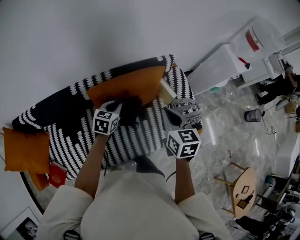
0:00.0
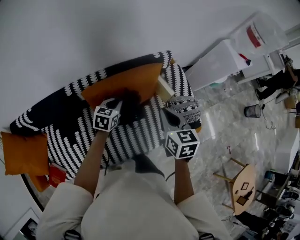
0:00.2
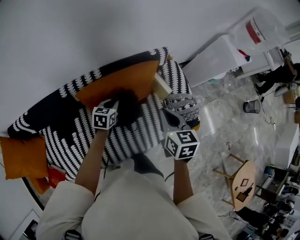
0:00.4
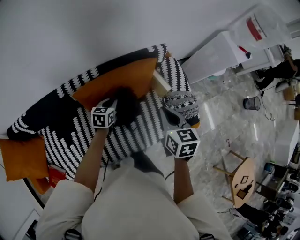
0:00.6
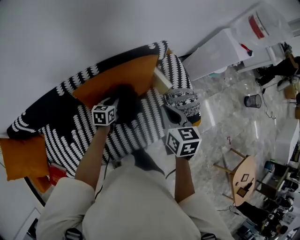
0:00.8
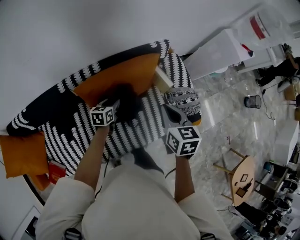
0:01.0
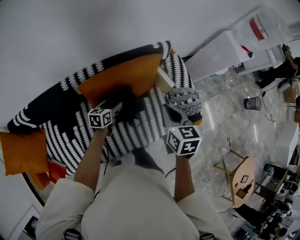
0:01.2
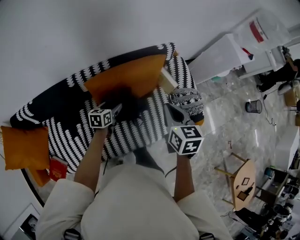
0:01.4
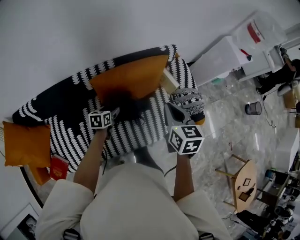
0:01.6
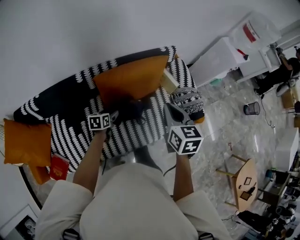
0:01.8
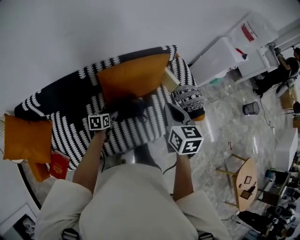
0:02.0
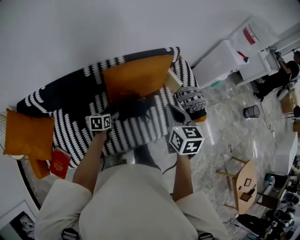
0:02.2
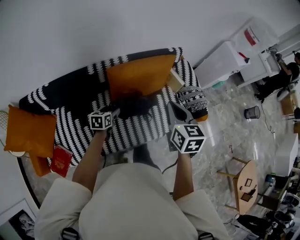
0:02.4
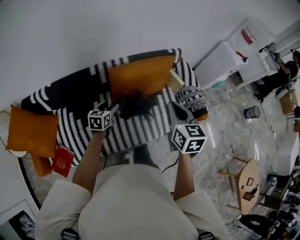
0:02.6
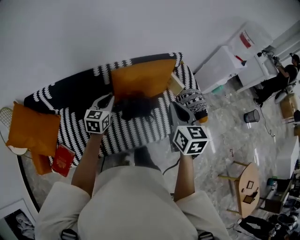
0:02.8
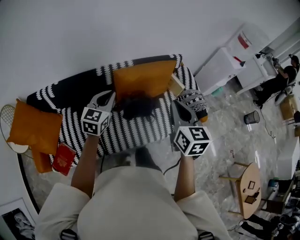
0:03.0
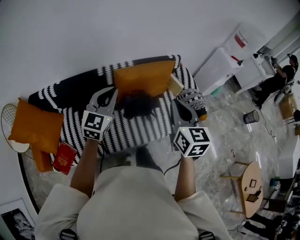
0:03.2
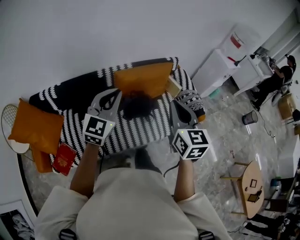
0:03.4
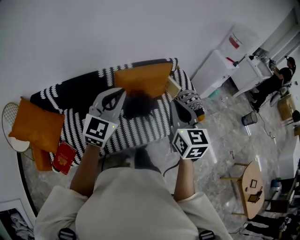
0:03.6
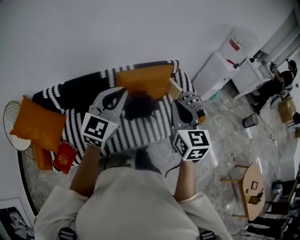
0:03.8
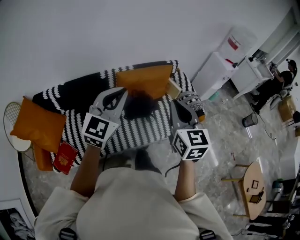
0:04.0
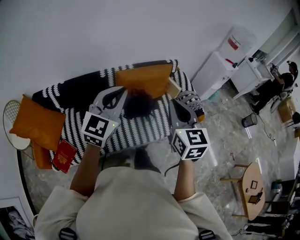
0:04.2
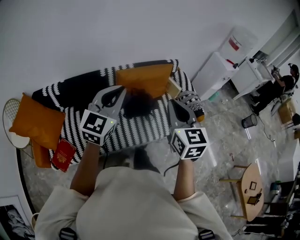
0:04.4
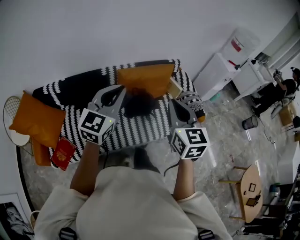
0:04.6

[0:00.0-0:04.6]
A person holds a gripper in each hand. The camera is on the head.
0:00.0 to 0:01.6: The left gripper goes roughly 15 cm downward, backward and to the left, changes its angle by about 20 degrees, and opens up.
0:01.6 to 0:03.0: The left gripper heads upward and backward, covering about 35 cm, turns by some 40 degrees, and closes its fingers. Meanwhile the right gripper moves backward and upward, about 30 cm.
0:03.0 to 0:04.6: The left gripper travels backward, upward and to the right by about 20 cm; the right gripper shifts about 15 cm backward and upward.

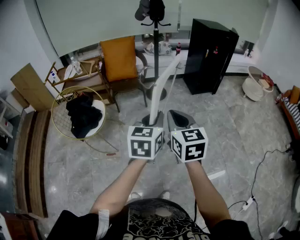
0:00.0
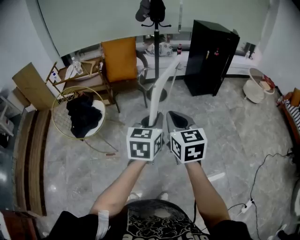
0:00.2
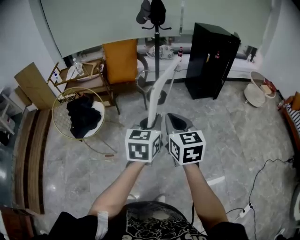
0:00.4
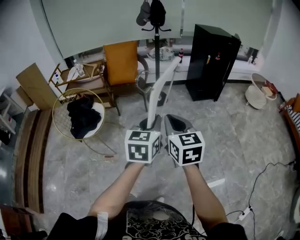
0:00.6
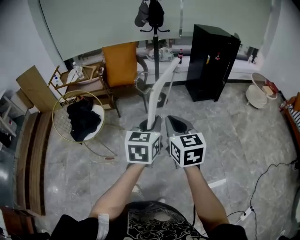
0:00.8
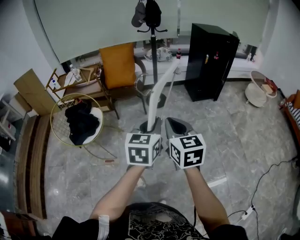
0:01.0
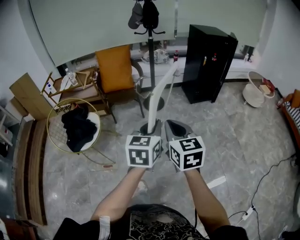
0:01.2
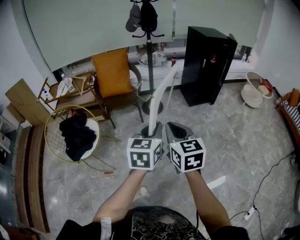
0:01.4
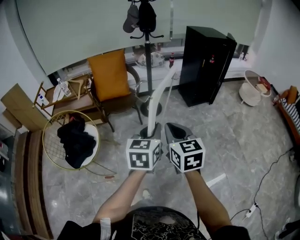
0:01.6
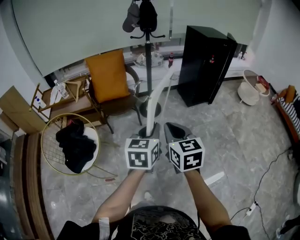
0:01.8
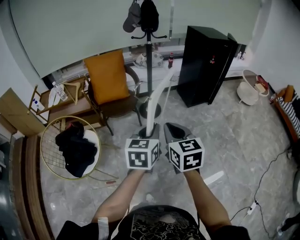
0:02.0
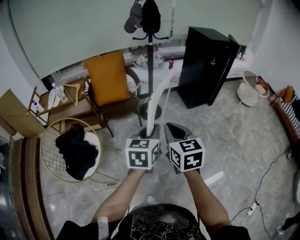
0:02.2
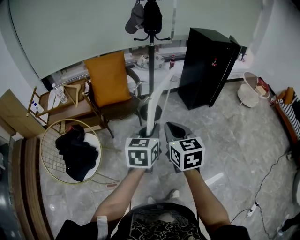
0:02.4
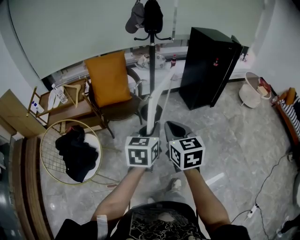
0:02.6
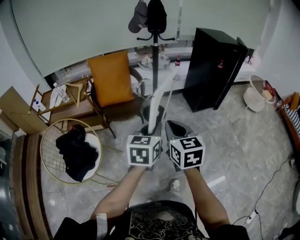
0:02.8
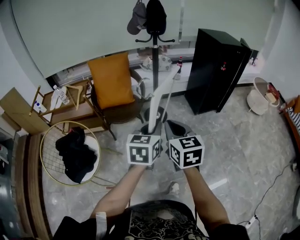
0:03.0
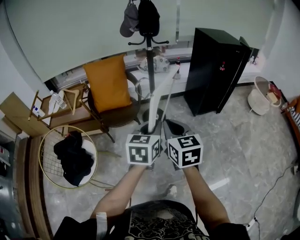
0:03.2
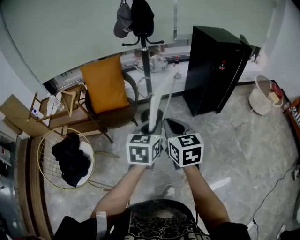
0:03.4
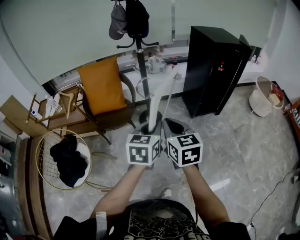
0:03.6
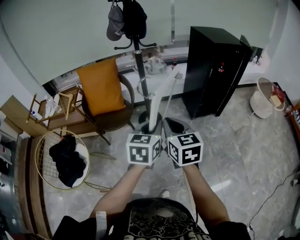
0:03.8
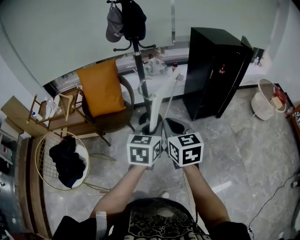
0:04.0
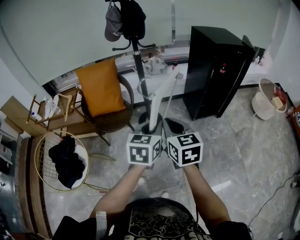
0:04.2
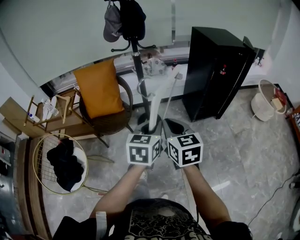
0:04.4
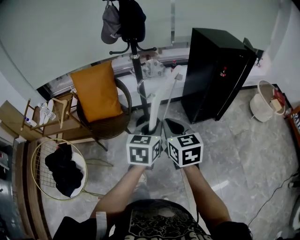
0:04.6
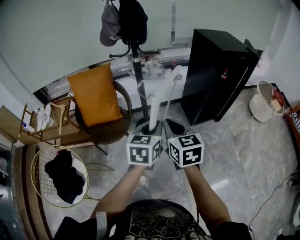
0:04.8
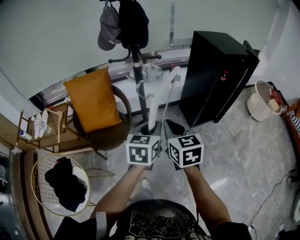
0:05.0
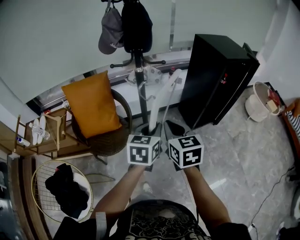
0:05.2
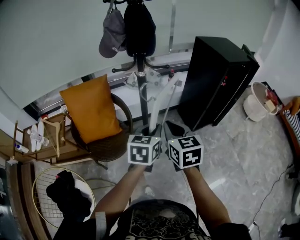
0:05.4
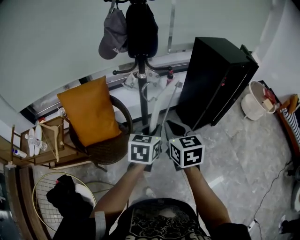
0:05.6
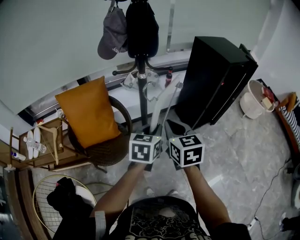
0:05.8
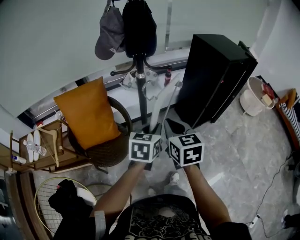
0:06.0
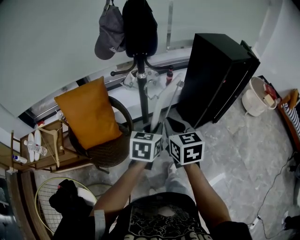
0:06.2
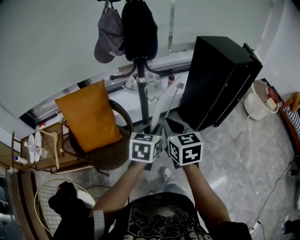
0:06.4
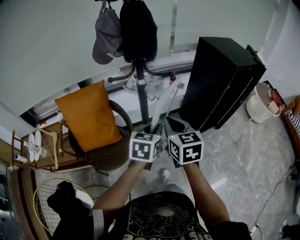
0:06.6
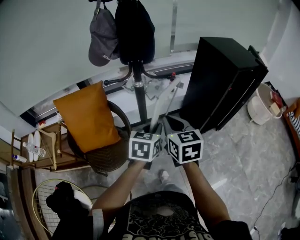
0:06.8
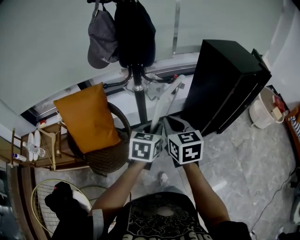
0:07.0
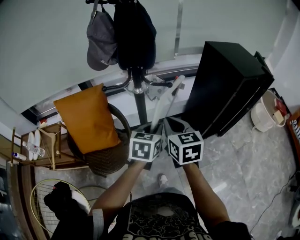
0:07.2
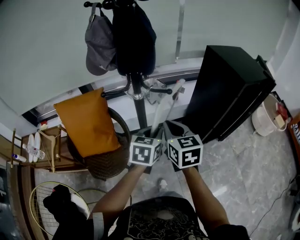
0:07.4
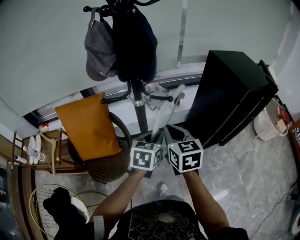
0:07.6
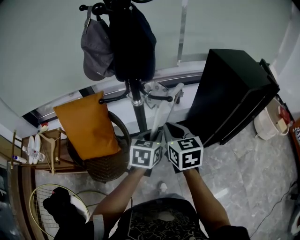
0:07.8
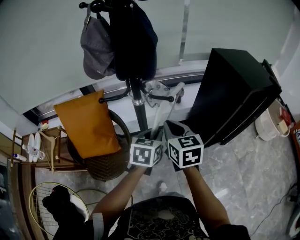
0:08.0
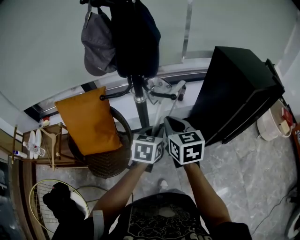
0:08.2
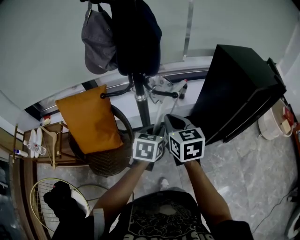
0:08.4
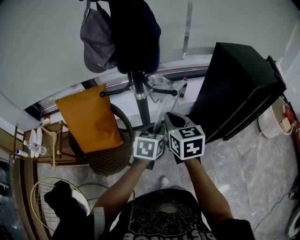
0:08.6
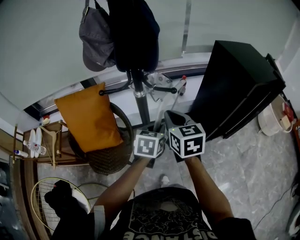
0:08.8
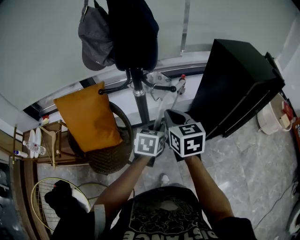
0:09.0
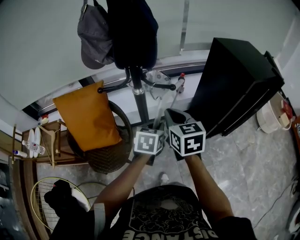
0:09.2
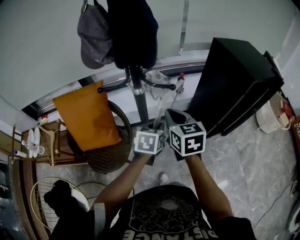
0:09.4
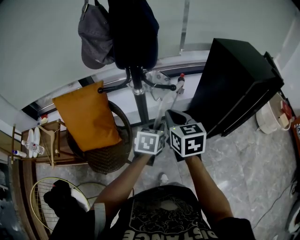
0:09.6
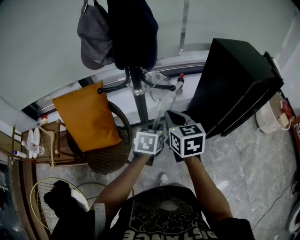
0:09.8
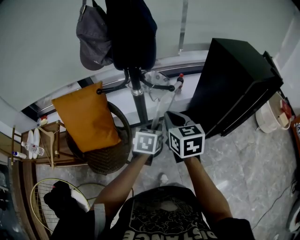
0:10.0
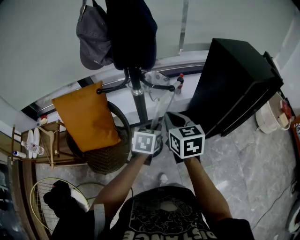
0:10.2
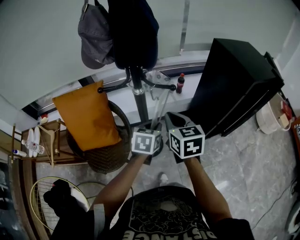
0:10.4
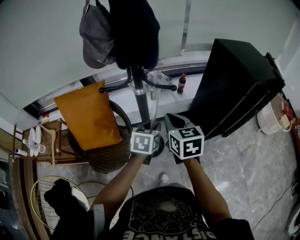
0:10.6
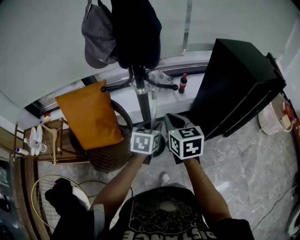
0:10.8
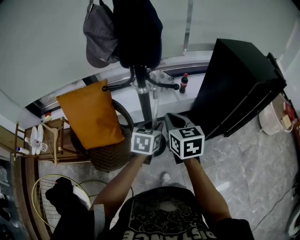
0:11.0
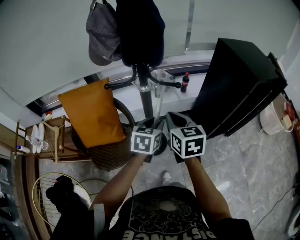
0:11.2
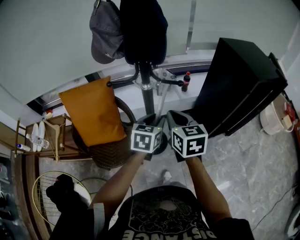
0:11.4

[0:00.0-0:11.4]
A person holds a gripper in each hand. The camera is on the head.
0:00.0 to 0:01.4: The grippers both shift forward by about 10 cm.
0:01.4 to 0:02.8: The two grippers go approximately 20 cm forward and to the left.
0:02.8 to 0:04.2: The grippers both shift to the right and forward by roughly 25 cm.
0:04.2 to 0:05.6: The grippers both shift forward and to the left by roughly 25 cm.
0:05.6 to 0:07.2: Both grippers travel together forward, about 15 cm.
0:07.2 to 0:08.6: The grippers both shift forward by roughly 5 cm.
0:08.6 to 0:10.0: The grippers move only a little.
0:10.0 to 0:11.4: The left gripper goes about 5 cm upward.

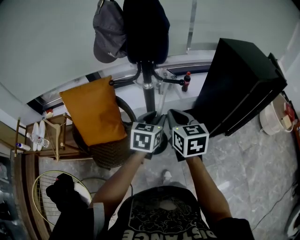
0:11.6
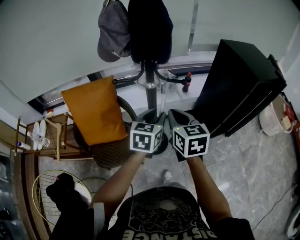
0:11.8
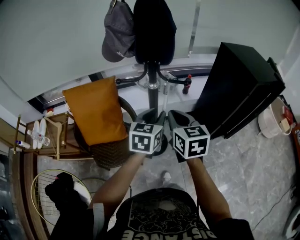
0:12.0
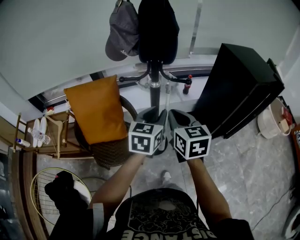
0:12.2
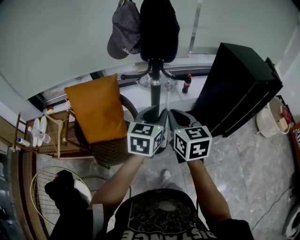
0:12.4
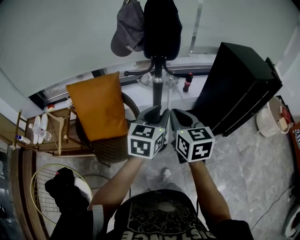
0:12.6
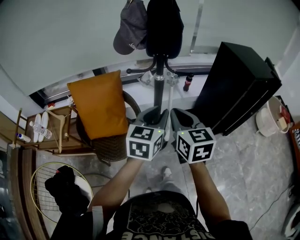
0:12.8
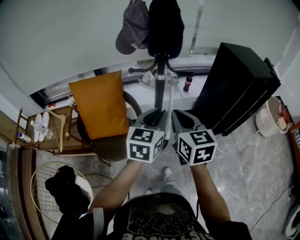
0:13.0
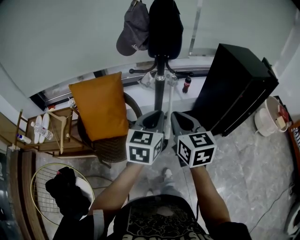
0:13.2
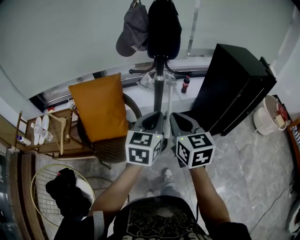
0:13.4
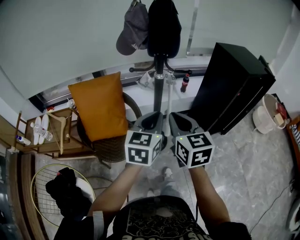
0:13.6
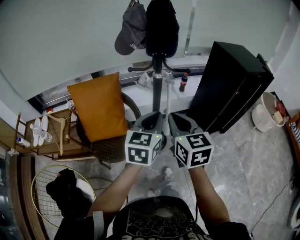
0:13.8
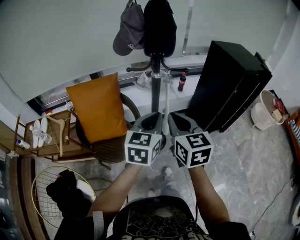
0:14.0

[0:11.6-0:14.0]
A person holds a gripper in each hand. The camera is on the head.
0:11.6 to 0:12.8: The left gripper is displaced upward and backward by some 15 cm. The right gripper moves backward and upward, some 10 cm.
0:12.8 to 0:14.0: Both grippers travel together backward, some 5 cm. The left gripper closes up.

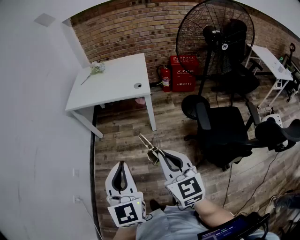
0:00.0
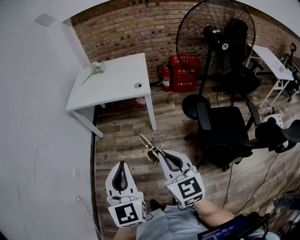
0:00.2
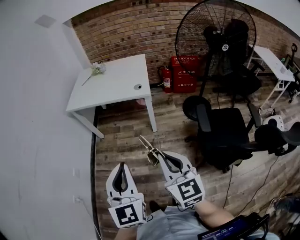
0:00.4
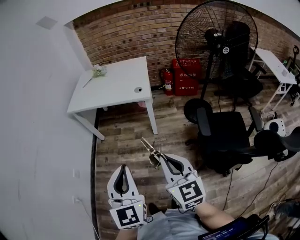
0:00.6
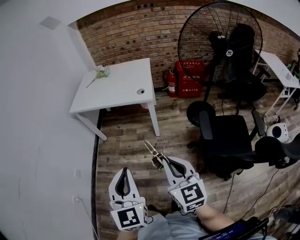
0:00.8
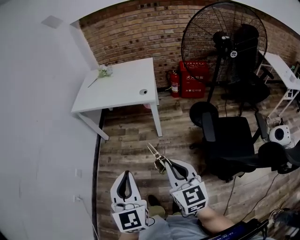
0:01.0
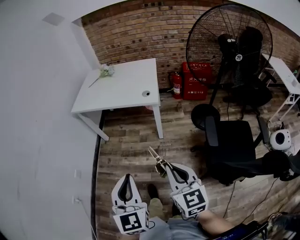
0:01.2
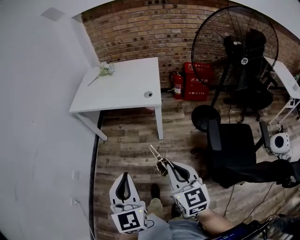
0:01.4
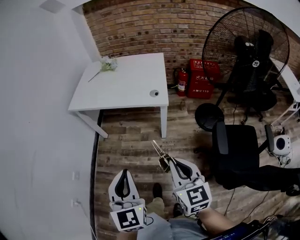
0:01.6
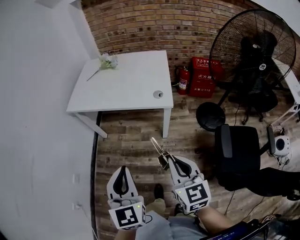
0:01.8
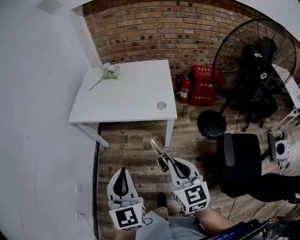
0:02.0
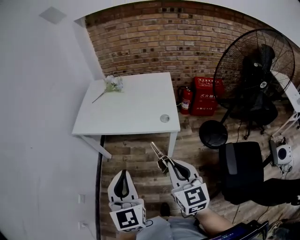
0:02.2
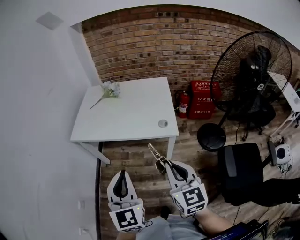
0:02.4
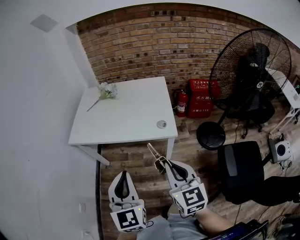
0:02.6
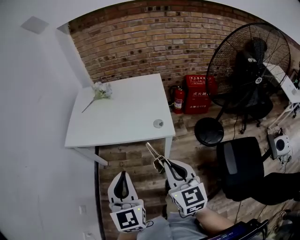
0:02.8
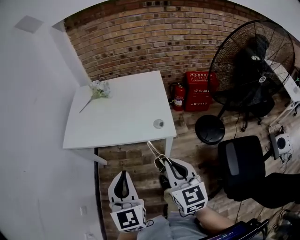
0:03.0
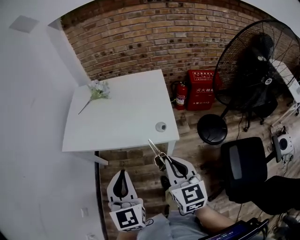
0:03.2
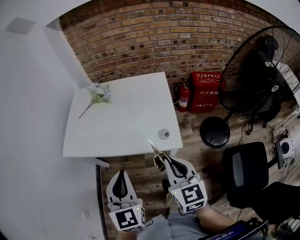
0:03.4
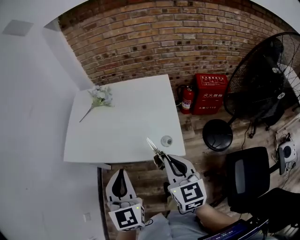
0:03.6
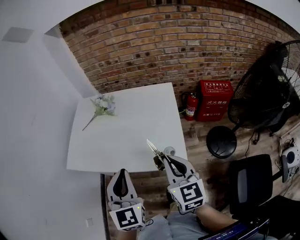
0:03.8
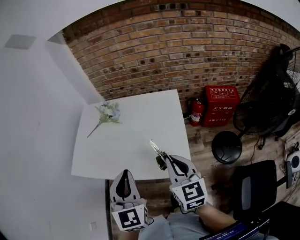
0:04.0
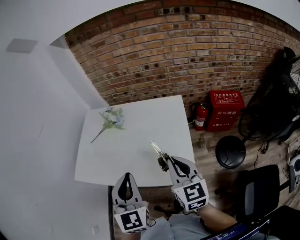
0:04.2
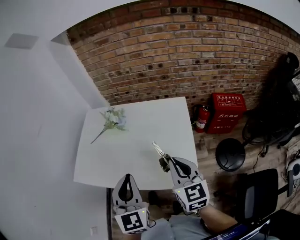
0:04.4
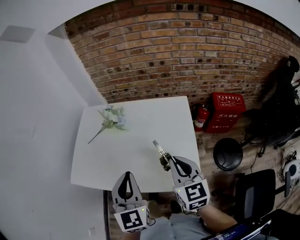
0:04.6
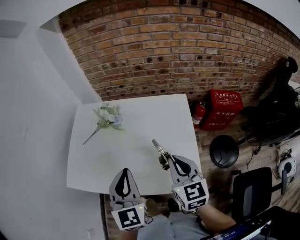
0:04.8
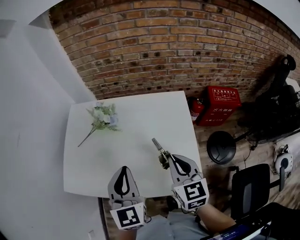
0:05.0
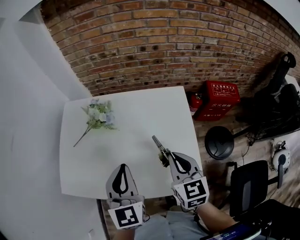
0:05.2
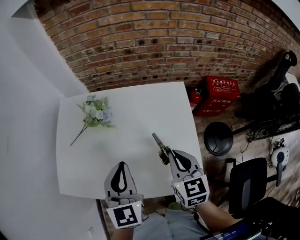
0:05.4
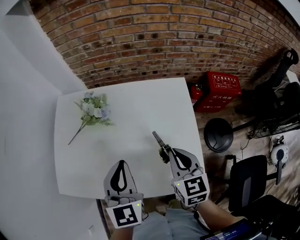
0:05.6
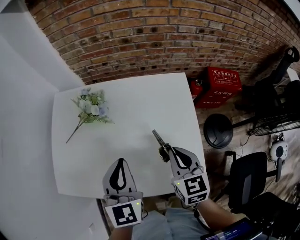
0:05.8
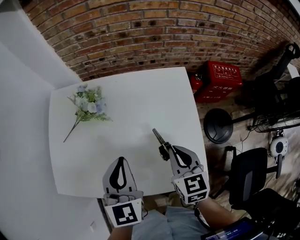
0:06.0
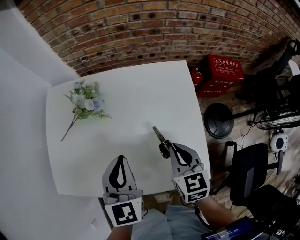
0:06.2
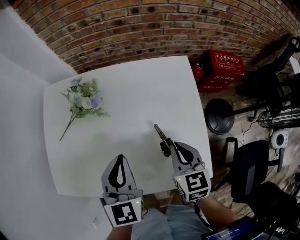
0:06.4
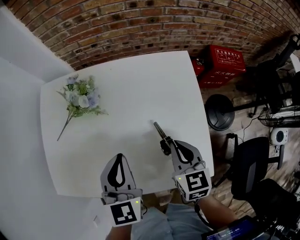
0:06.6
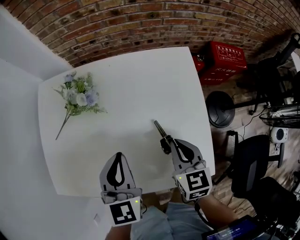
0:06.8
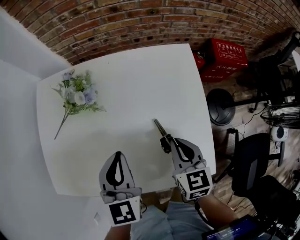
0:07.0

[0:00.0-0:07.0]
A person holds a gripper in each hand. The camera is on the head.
0:00.0 to 0:01.4: The right gripper goes some 10 cm forward and downward, while the left gripper heads forward, covering some 5 cm.
0:01.4 to 0:02.8: Both grippers travel together forward, roughly 25 cm.
0:02.8 to 0:04.2: Both grippers move forward, approximately 30 cm.
0:04.2 to 0:05.6: The grippers both shift forward and downward by roughly 20 cm.
0:05.6 to 0:07.0: Both grippers travel together downward, about 10 cm.
